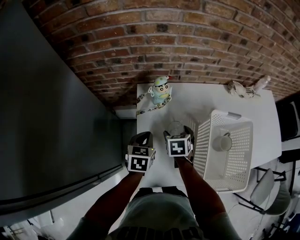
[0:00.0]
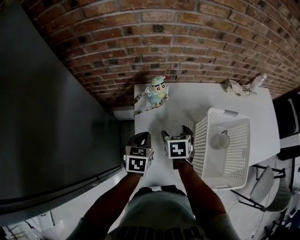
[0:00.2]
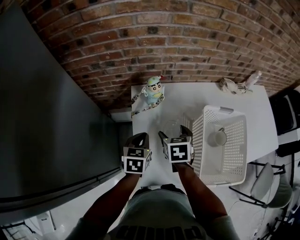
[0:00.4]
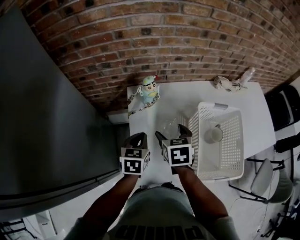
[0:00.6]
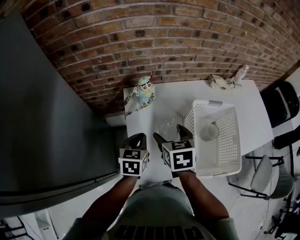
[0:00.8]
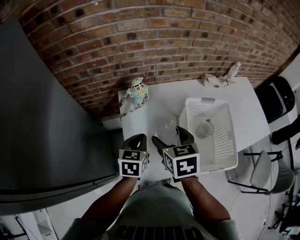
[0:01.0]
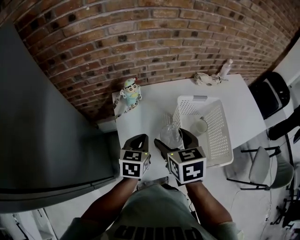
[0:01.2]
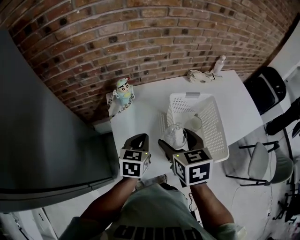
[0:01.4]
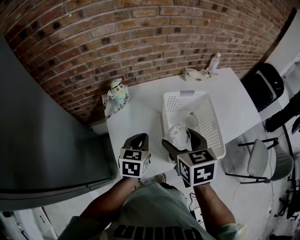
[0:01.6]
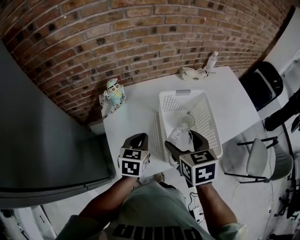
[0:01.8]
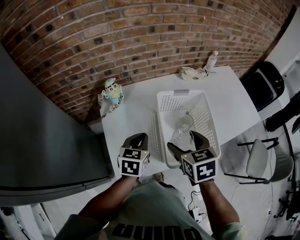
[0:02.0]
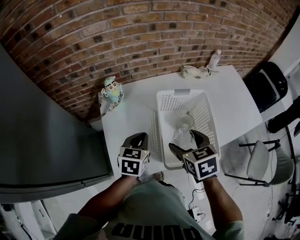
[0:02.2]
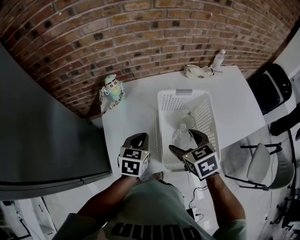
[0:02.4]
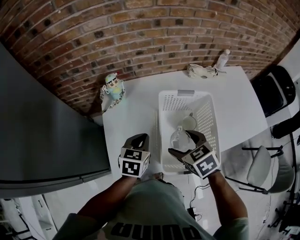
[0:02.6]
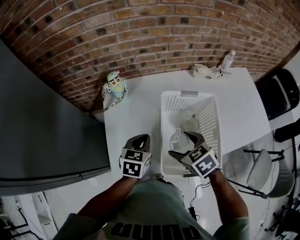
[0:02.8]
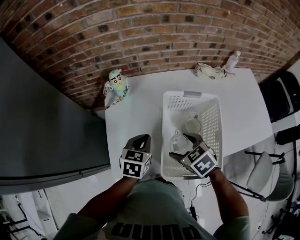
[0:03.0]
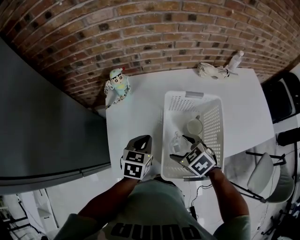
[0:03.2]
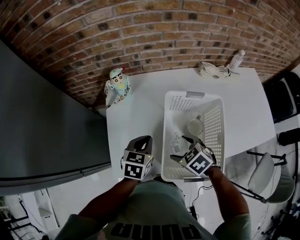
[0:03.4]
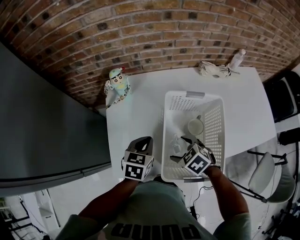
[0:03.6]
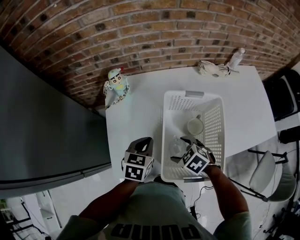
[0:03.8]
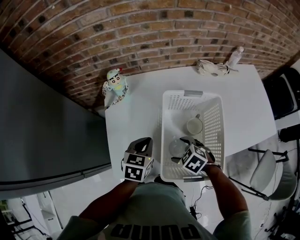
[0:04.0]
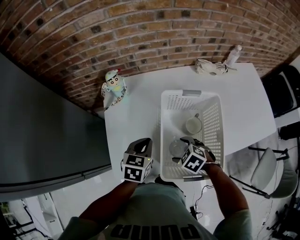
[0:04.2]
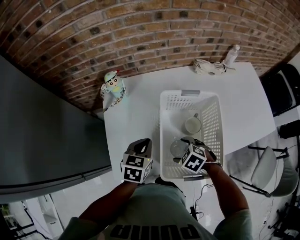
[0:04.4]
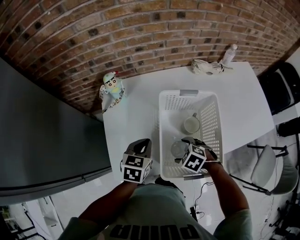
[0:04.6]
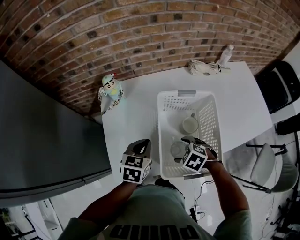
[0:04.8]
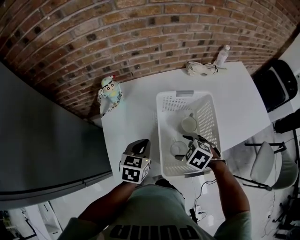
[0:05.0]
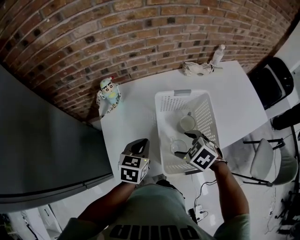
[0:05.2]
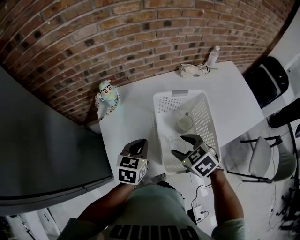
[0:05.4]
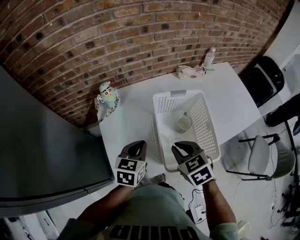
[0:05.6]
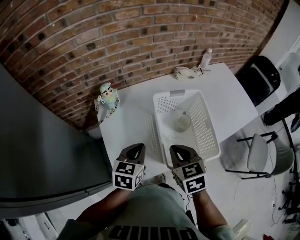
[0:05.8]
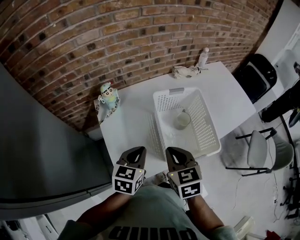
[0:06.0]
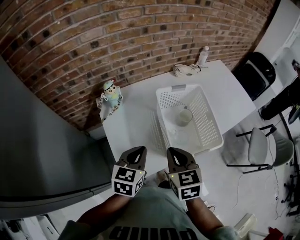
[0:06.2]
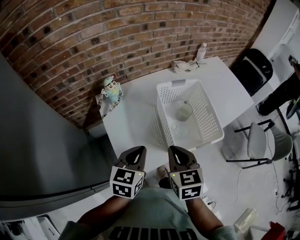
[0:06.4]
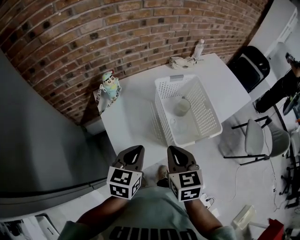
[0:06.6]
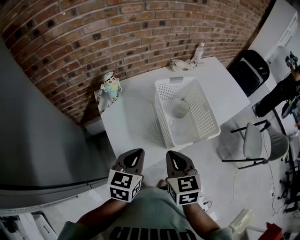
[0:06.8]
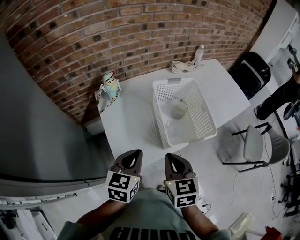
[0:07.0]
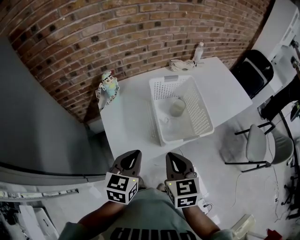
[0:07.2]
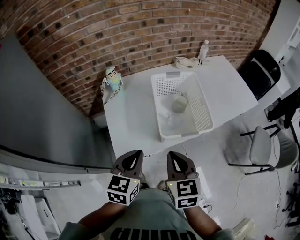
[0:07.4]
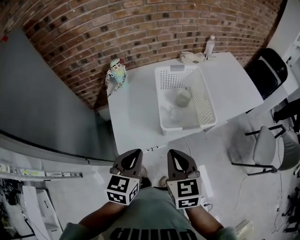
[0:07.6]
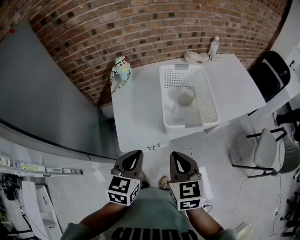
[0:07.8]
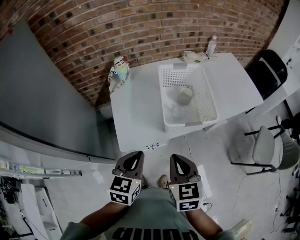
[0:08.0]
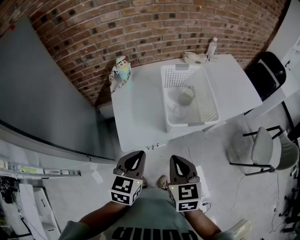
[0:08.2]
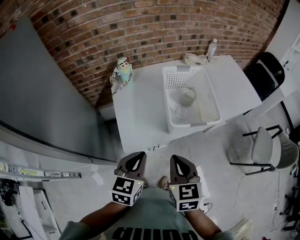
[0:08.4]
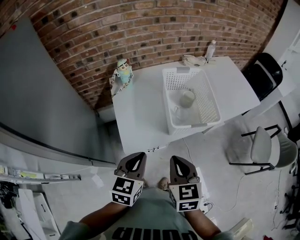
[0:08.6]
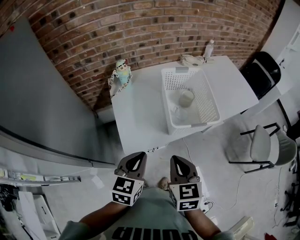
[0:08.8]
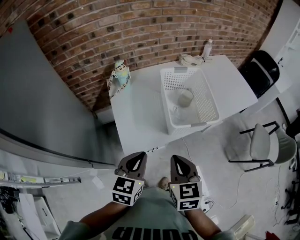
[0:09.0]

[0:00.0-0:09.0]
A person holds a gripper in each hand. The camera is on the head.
0:00.0 to 0:01.6: The left gripper is displaced to the right, upward and backward by about 20 cm. The right gripper shifts approximately 30 cm upward, backward and to the right, and swivels about 20 degrees.
0:01.6 to 0:03.0: The left gripper goes roughly 5 cm downward. The right gripper heads downward and to the right, covering some 15 cm, and changes its angle by roughly 40 degrees.
0:03.0 to 0:04.4: The right gripper travels downward by approximately 10 cm, and swivels about 20 degrees.
0:04.4 to 0:06.0: The left gripper moves upward, approximately 10 cm; the right gripper heads upward, covering about 20 cm, tips its fingers upward by some 30 degrees, and closes.
0:06.0 to 0:07.6: The right gripper shifts roughly 15 cm backward and to the right, while the left gripper shifts some 15 cm backward.
0:07.6 to 0:09.0: The right gripper changes place by about 5 cm.

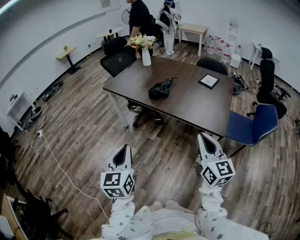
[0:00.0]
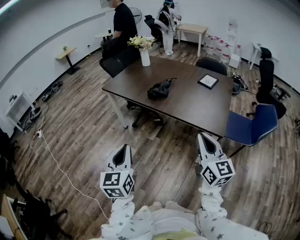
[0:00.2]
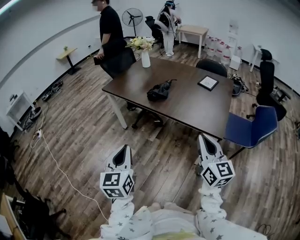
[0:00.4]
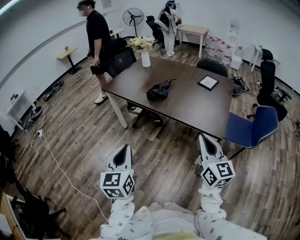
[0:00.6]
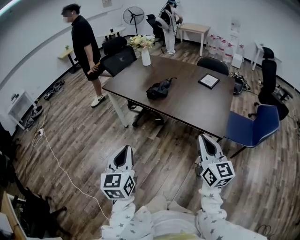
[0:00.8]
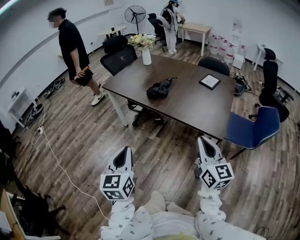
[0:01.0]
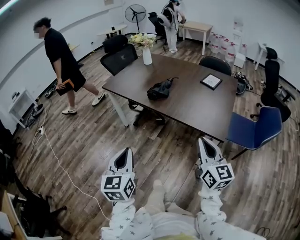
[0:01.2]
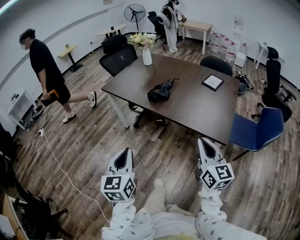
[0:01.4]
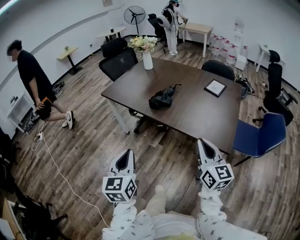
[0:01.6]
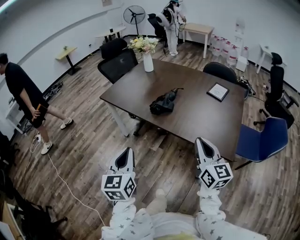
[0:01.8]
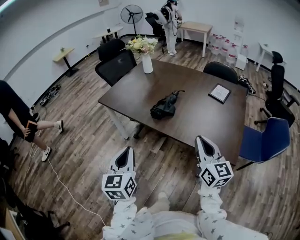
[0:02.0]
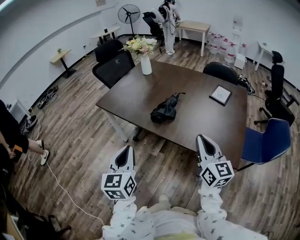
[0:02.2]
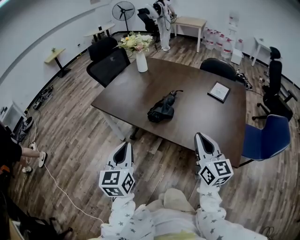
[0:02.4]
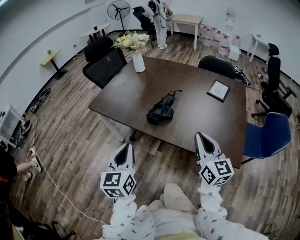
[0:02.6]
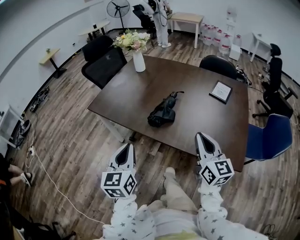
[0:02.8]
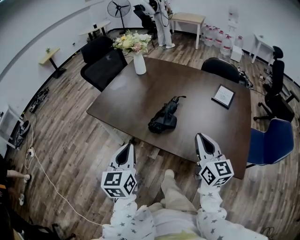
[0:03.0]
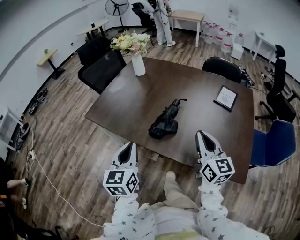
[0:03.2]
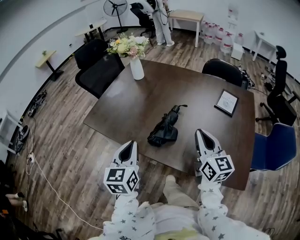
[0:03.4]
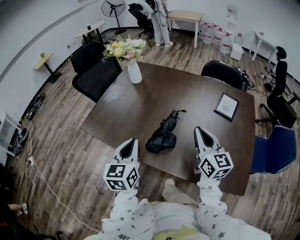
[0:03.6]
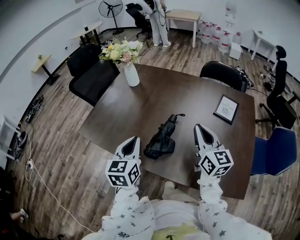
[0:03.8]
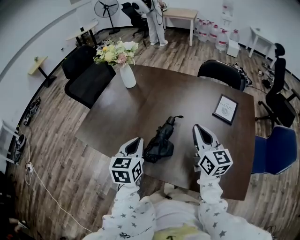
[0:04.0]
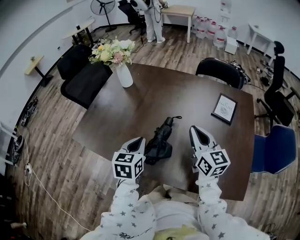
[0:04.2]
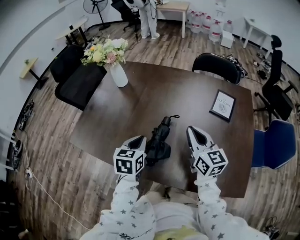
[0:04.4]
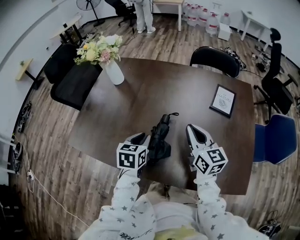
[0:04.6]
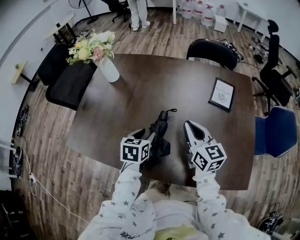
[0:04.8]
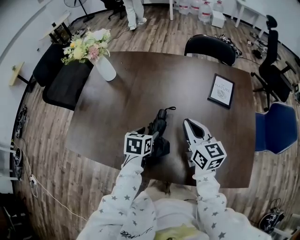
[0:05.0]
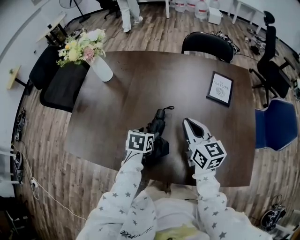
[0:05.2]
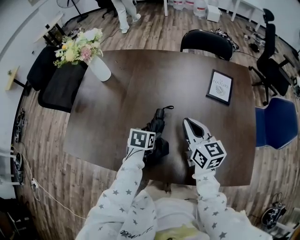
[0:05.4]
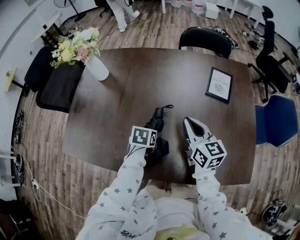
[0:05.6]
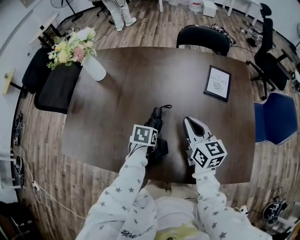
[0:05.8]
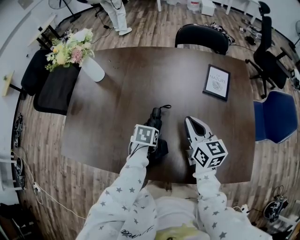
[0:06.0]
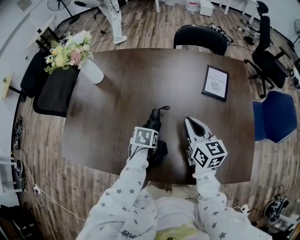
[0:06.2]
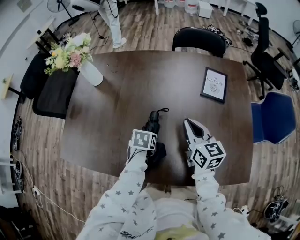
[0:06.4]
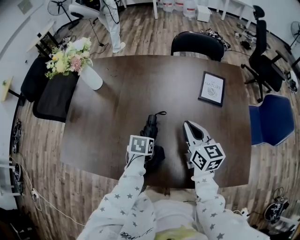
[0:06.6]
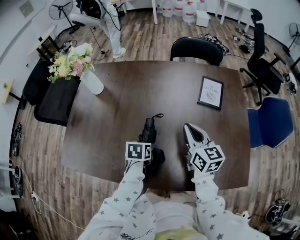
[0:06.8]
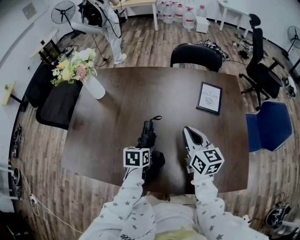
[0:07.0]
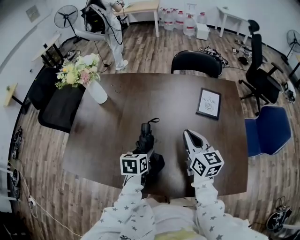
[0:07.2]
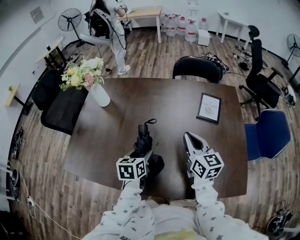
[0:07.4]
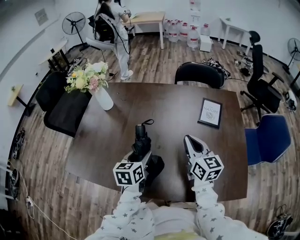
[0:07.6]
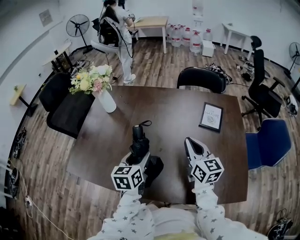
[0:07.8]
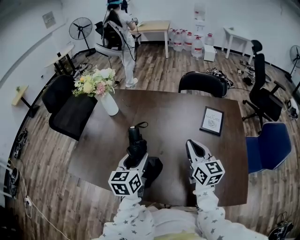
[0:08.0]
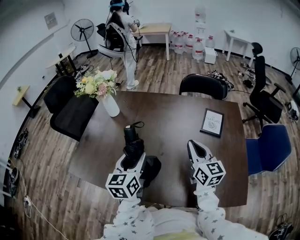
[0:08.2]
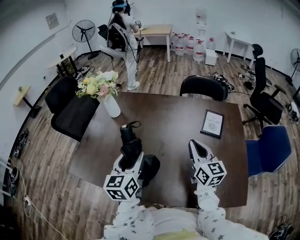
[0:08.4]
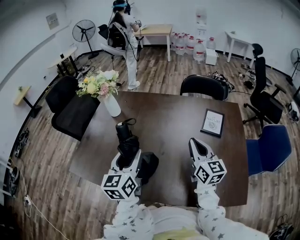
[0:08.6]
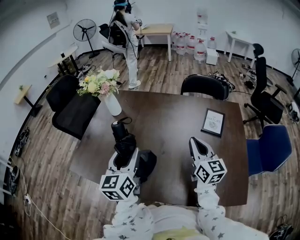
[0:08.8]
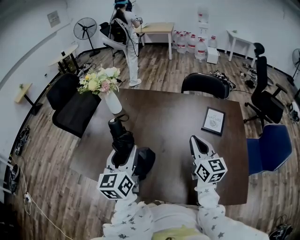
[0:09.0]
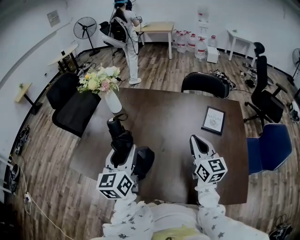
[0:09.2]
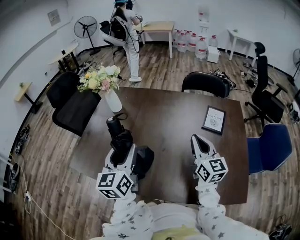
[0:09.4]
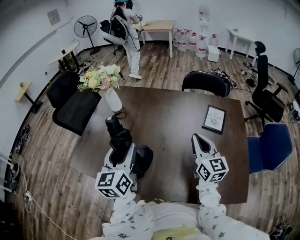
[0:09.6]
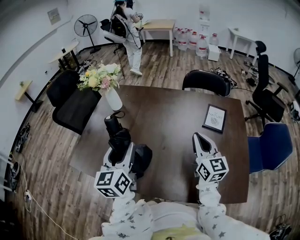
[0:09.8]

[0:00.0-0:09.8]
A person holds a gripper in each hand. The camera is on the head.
0:00.0 to 0:01.4: The left gripper changes place by some 5 cm; the right gripper travels forward by roughly 5 cm.
0:01.4 to 0:02.8: The grippers both shift forward by approximately 25 cm.
0:02.8 to 0:04.2: Both grippers travel together forward, roughly 25 cm. The left gripper rotates approximately 20 degrees.
0:04.2 to 0:05.6: The right gripper travels downward by about 5 cm. Meanwhile the left gripper heads downward and forward, covering some 20 cm, angles its fingers downward, by about 30 degrees, and opens its fingers.
0:05.6 to 0:07.0: There are only small adjustments of the grippers.
0:07.0 to 0:08.4: The right gripper heads upward, covering roughly 5 cm. Meanwhile the left gripper is displaced upward by roughly 20 cm, and tilts its fingers roughly 40 degrees upward.
0:08.4 to 0:09.8: The left gripper changes place by roughly 5 cm.

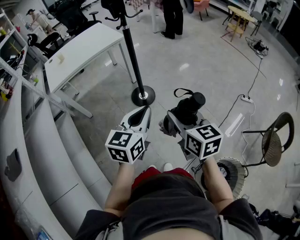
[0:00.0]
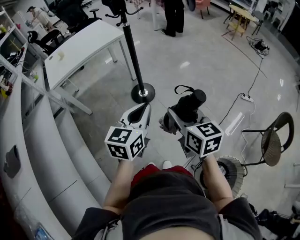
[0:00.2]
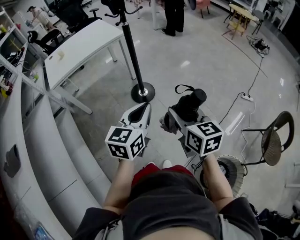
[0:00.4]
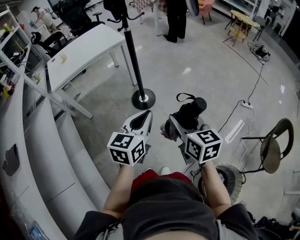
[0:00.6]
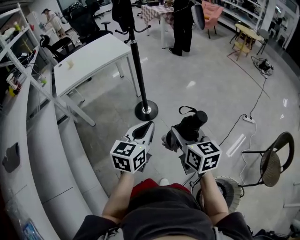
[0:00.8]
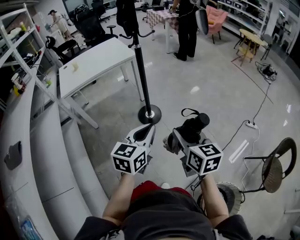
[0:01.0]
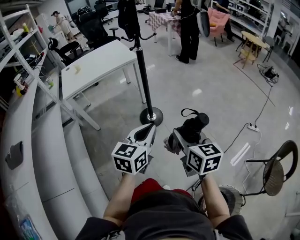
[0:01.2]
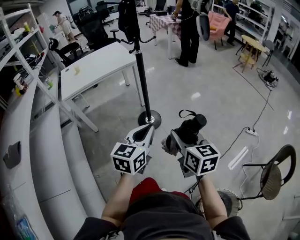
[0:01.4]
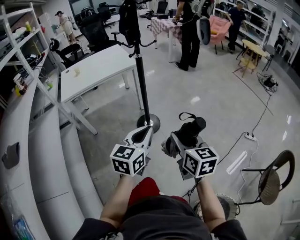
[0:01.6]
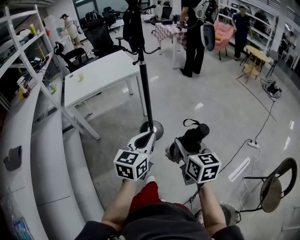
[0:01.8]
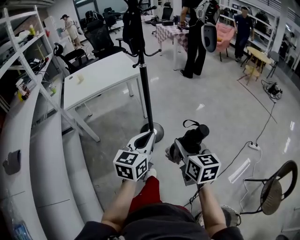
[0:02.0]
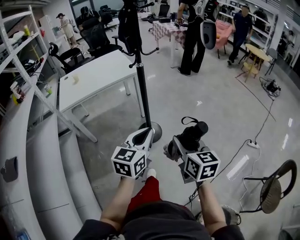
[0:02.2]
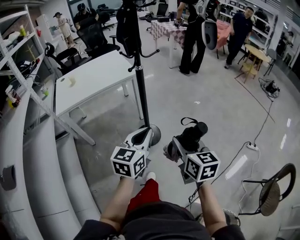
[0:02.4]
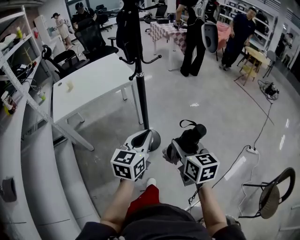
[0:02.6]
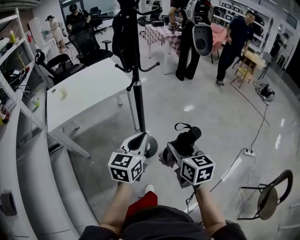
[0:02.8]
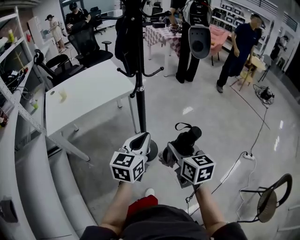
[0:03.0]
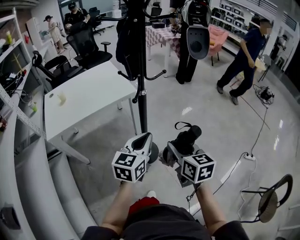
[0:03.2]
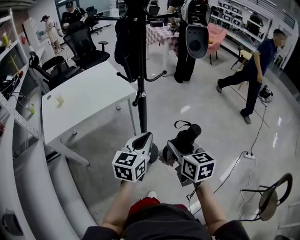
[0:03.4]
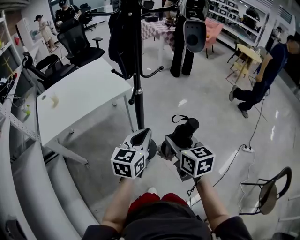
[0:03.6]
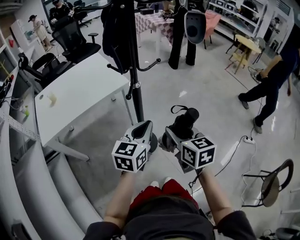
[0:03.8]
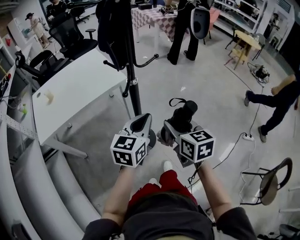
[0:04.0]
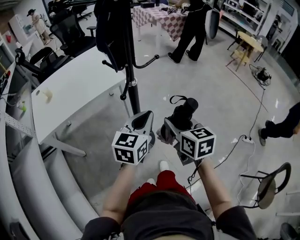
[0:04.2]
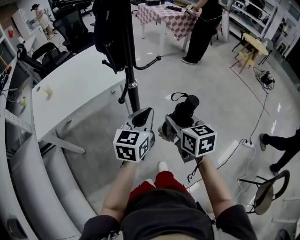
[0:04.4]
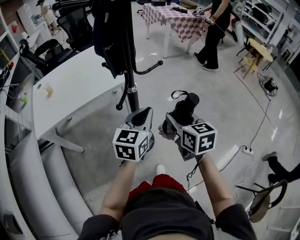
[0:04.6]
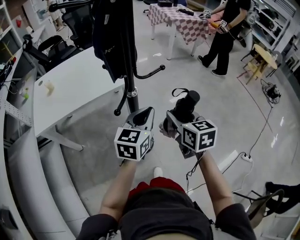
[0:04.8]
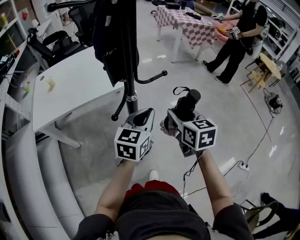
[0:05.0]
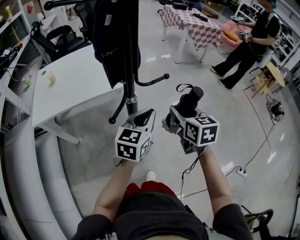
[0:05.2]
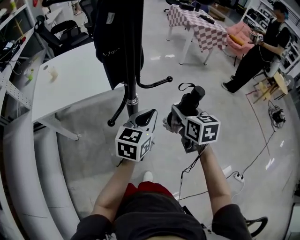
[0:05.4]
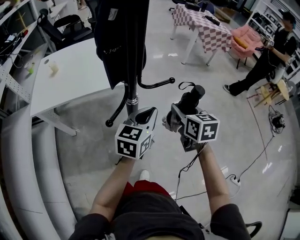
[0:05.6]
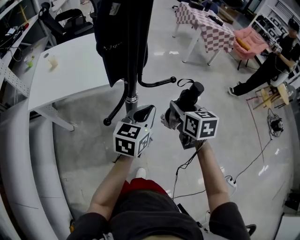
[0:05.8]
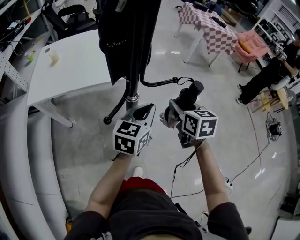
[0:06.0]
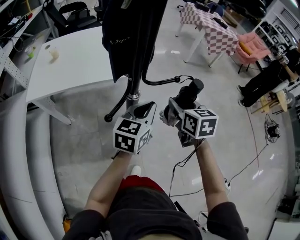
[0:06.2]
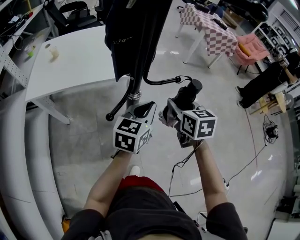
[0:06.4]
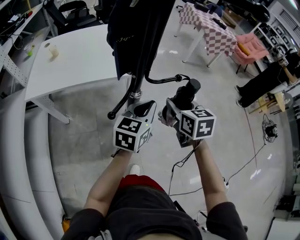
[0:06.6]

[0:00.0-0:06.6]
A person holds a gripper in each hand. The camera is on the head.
0:00.0 to 0:01.6: The right gripper changes place by approximately 5 cm. Meanwhile the left gripper shifts by roughly 5 cm.
0:01.6 to 0:03.2: The two grippers go approximately 30 cm forward.
0:03.2 to 0:05.0: Both grippers move forward, roughly 25 cm.
0:05.0 to 0:06.6: The right gripper shifts approximately 10 cm forward; the left gripper goes about 5 cm forward.
